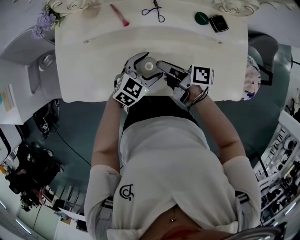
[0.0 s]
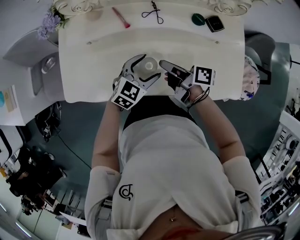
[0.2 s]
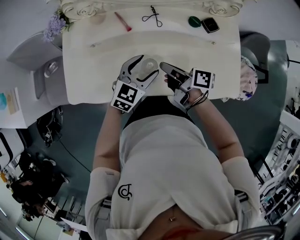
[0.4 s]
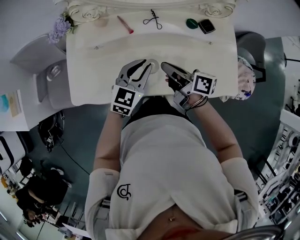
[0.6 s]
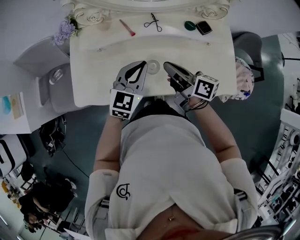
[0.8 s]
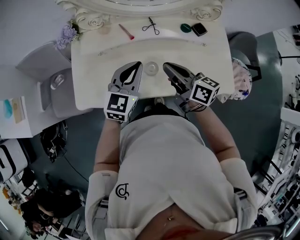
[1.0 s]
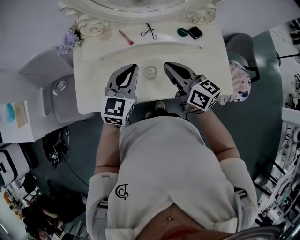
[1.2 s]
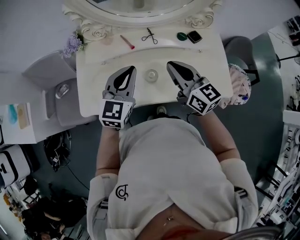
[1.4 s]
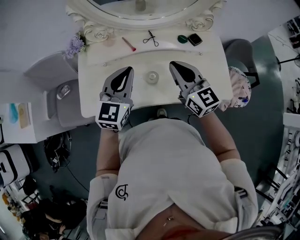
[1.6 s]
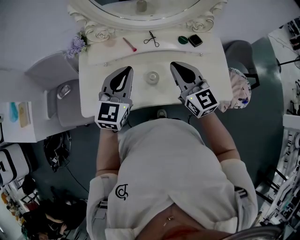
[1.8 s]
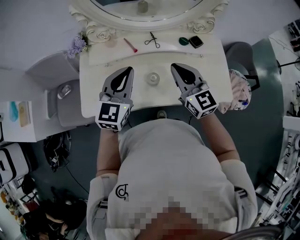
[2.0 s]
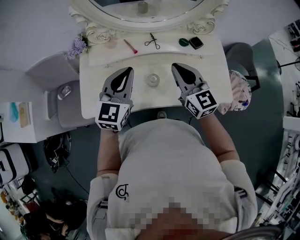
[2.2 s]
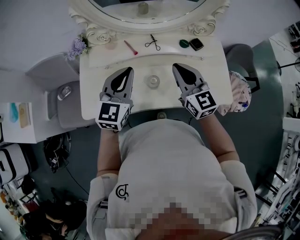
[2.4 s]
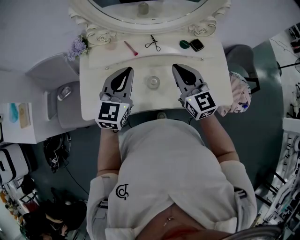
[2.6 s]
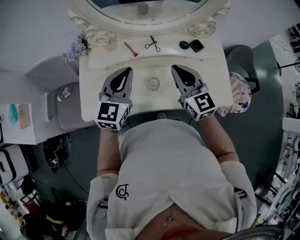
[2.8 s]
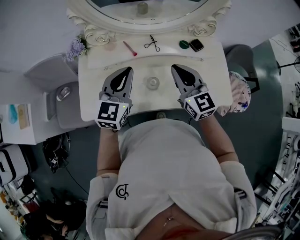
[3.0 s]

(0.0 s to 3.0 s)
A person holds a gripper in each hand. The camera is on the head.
0.0 s - 1.6 s: The left gripper travels upward and to the left by about 30 cm, changes its angle by about 30 degrees, and closes. The right gripper shifts approximately 25 cm upward, and twists about 70 degrees counterclockwise, seen from behind.
1.6 s - 3.0 s: The grippers stay close to where they were, moving slightly.

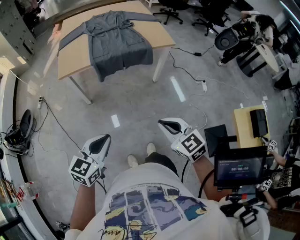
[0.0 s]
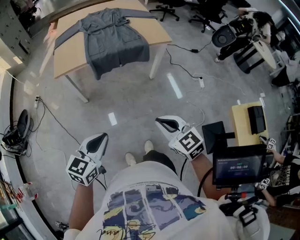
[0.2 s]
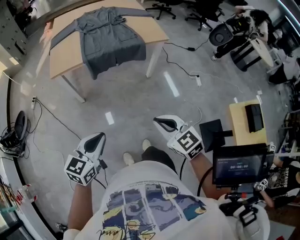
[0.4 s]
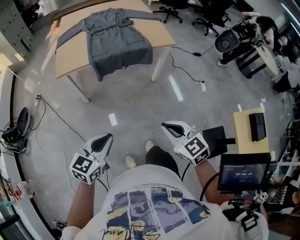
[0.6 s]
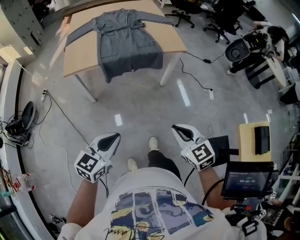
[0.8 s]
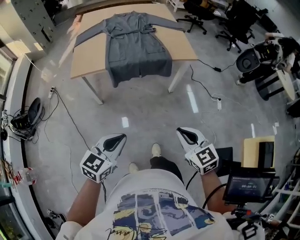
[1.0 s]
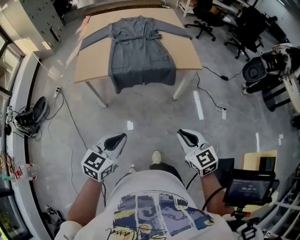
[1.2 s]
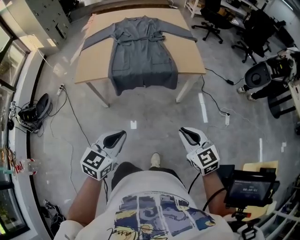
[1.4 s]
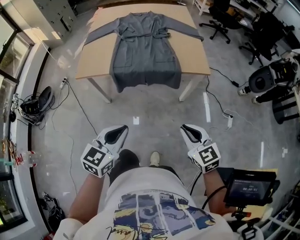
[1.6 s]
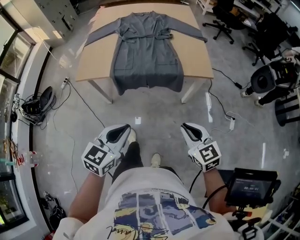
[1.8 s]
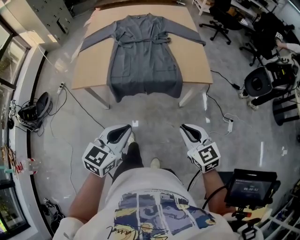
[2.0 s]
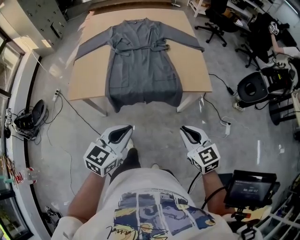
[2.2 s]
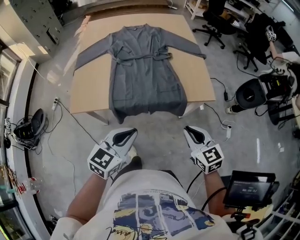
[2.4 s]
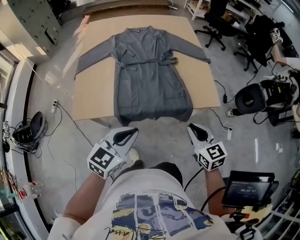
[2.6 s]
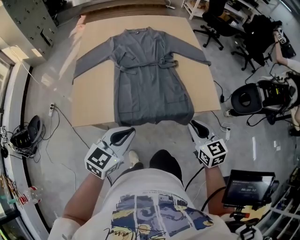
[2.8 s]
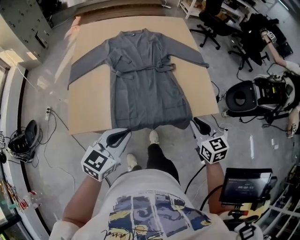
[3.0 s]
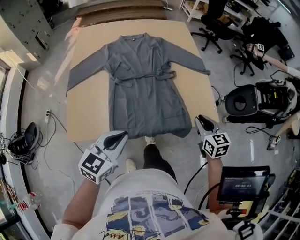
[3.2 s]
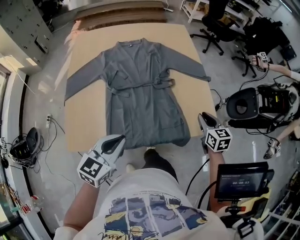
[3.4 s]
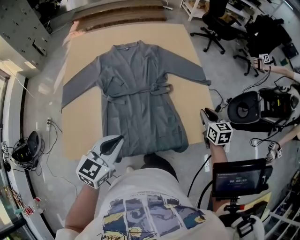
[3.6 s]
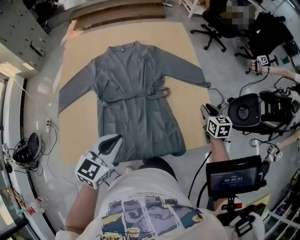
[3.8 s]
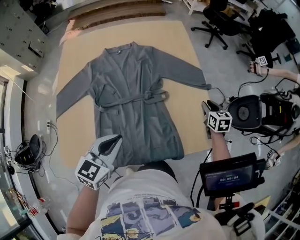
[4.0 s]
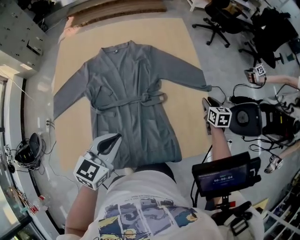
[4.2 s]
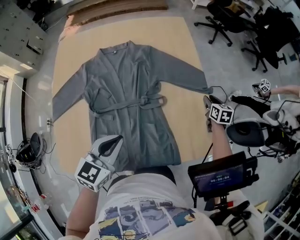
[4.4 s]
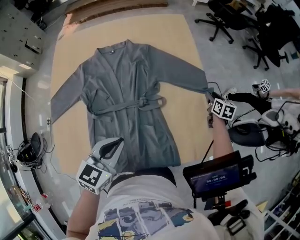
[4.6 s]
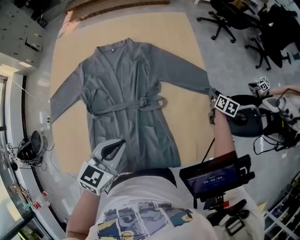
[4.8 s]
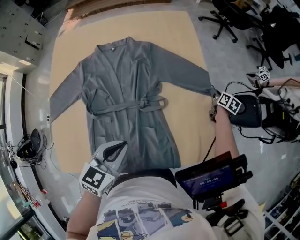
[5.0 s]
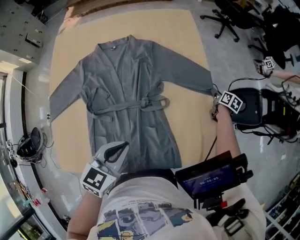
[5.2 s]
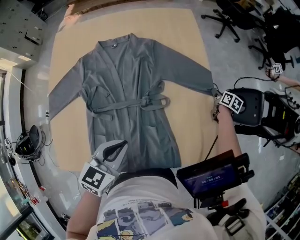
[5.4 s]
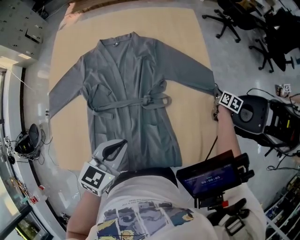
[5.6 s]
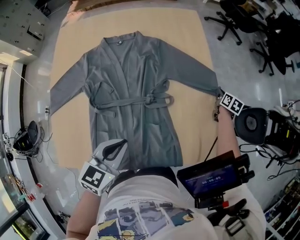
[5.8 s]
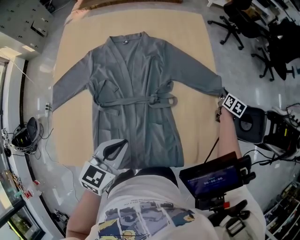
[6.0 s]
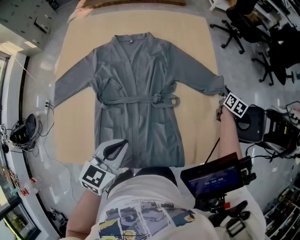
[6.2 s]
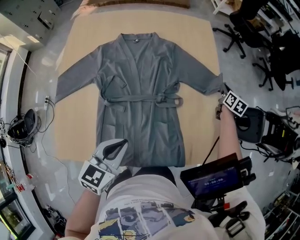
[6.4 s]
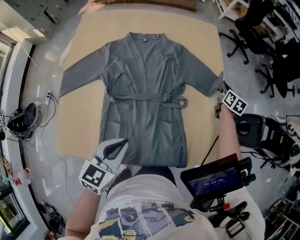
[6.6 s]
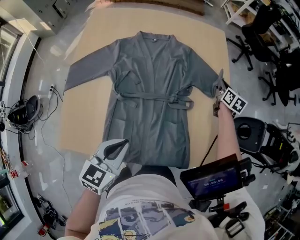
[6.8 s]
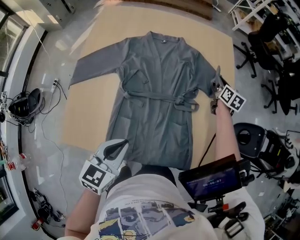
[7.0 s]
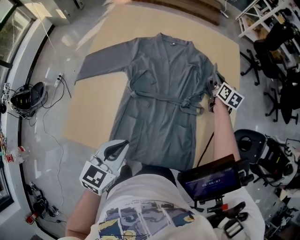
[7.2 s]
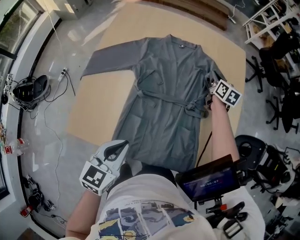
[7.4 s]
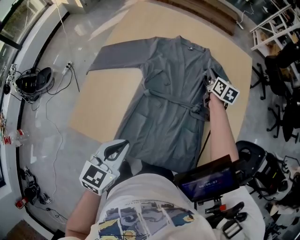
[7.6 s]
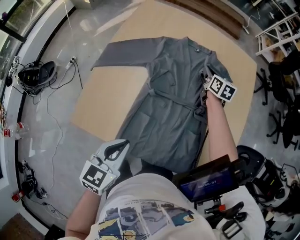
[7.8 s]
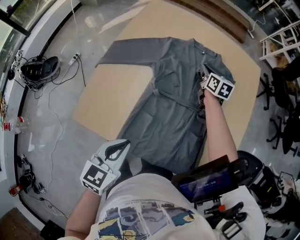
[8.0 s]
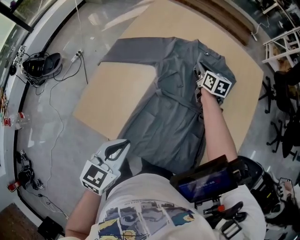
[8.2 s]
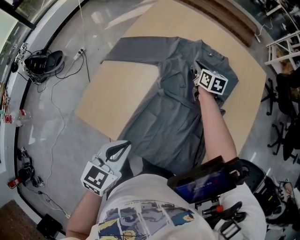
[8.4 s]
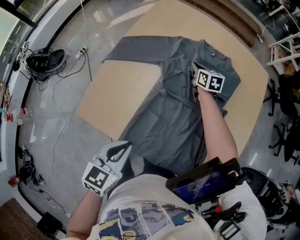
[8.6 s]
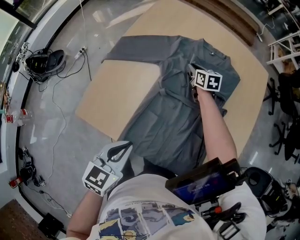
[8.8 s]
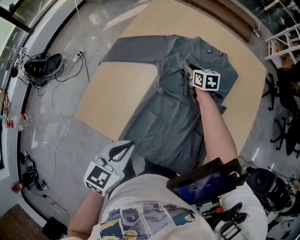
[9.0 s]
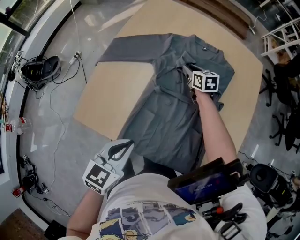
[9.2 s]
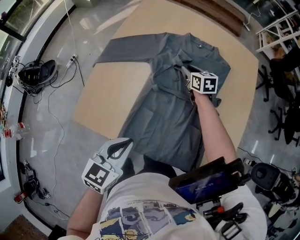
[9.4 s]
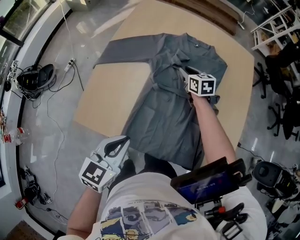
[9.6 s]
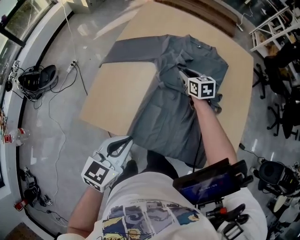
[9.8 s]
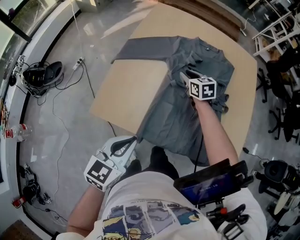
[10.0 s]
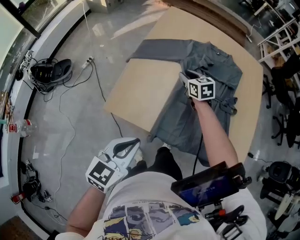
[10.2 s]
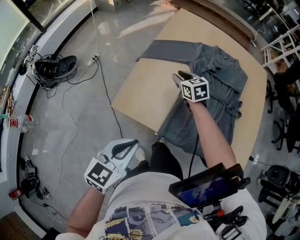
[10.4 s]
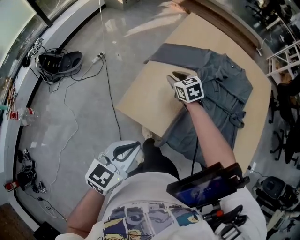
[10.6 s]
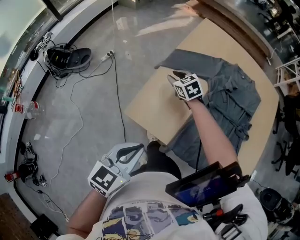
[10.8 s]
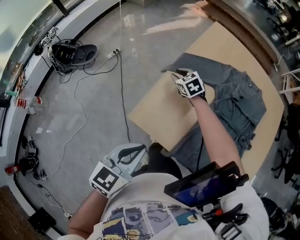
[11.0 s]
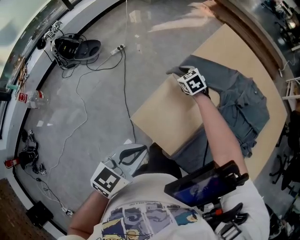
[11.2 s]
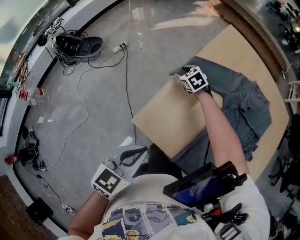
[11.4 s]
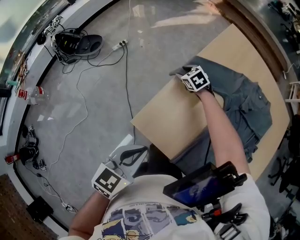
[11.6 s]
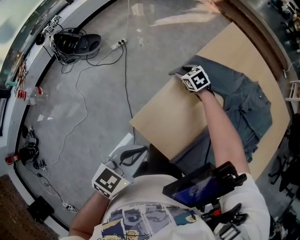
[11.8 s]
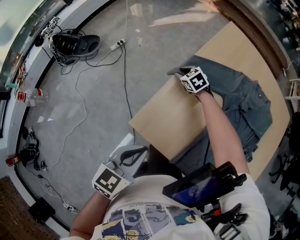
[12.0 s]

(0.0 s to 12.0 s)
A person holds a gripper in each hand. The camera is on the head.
0.0 s - 1.6 s: The grippers both shift forward and to the right by about 25 cm.
1.6 s - 3.0 s: Both grippers travel together forward, approximately 30 cm. The right gripper swivels roughly 20 degrees.
3.0 s - 4.4 s: The right gripper goes about 40 cm forward, and rotates approximately 30 degrees. The left gripper is displaced forward by some 25 cm.
4.4 s - 6.0 s: The right gripper travels forward by about 10 cm, and closes its fingers.
6.0 s - 7.6 s: The left gripper ends up roughly 15 cm from where it was, and changes its angle by roughly 20 degrees; the right gripper changes place by some 40 cm, and changes its angle by some 40 degrees.
7.6 s - 9.0 s: The right gripper shifts roughly 20 cm to the left, and rotates about 30 degrees.
9.0 s - 10.4 s: The two grippers go some 25 cm to the left and backward.
10.4 s - 12.0 s: The left gripper moves forward, some 10 cm. Meanwhile the right gripper travels forward, to the left and downward by about 25 cm, and rotates roughly 30 degrees.

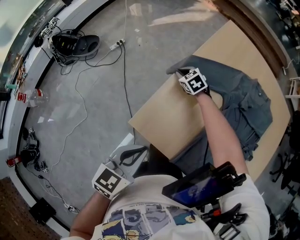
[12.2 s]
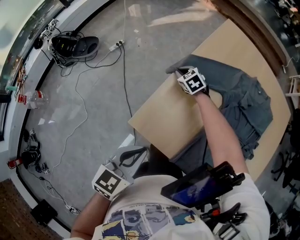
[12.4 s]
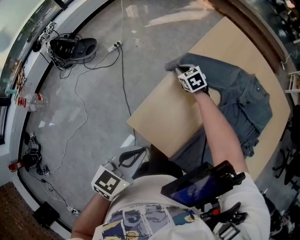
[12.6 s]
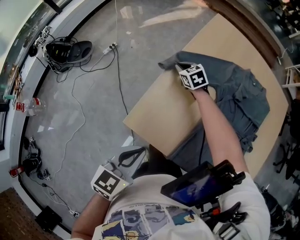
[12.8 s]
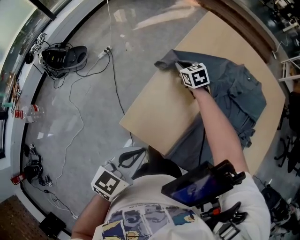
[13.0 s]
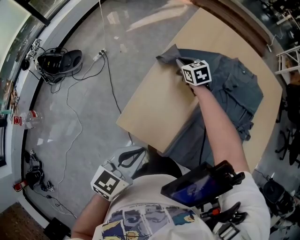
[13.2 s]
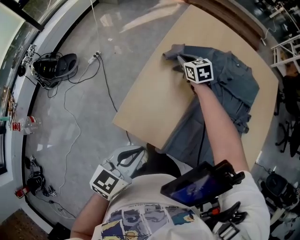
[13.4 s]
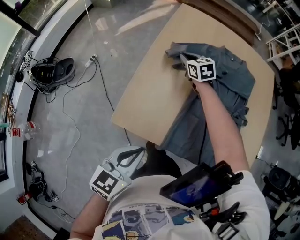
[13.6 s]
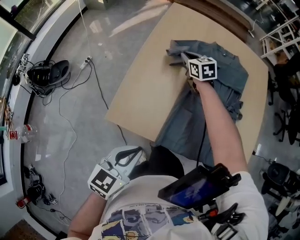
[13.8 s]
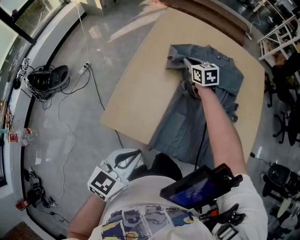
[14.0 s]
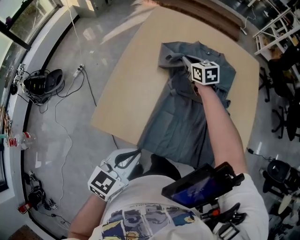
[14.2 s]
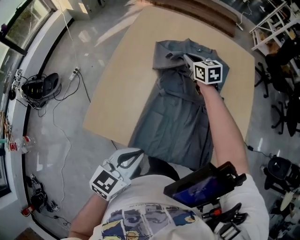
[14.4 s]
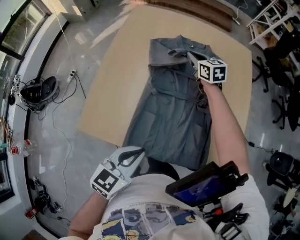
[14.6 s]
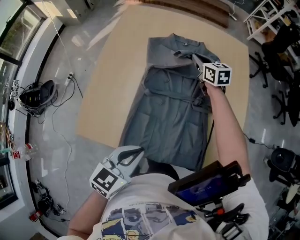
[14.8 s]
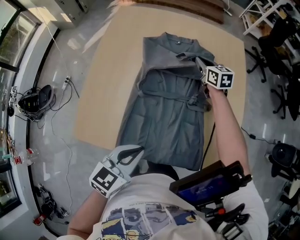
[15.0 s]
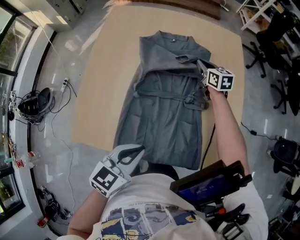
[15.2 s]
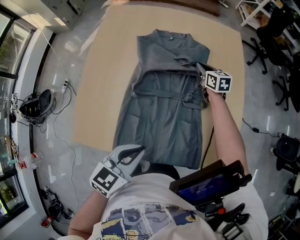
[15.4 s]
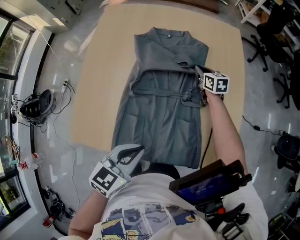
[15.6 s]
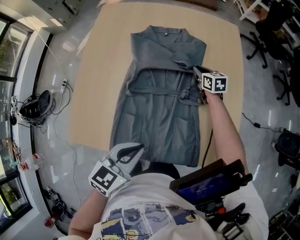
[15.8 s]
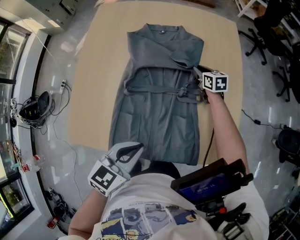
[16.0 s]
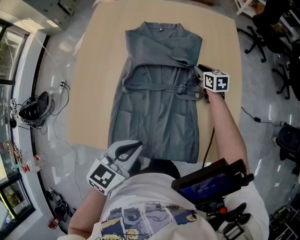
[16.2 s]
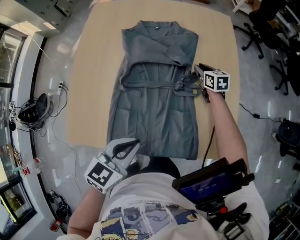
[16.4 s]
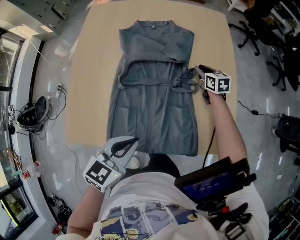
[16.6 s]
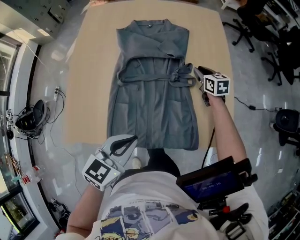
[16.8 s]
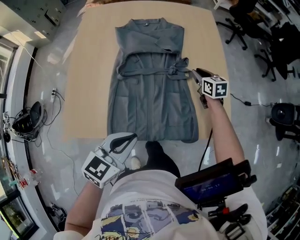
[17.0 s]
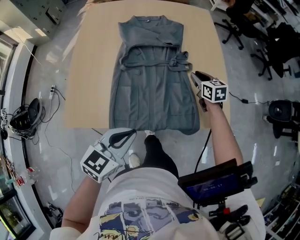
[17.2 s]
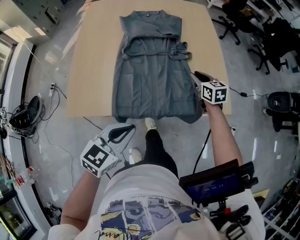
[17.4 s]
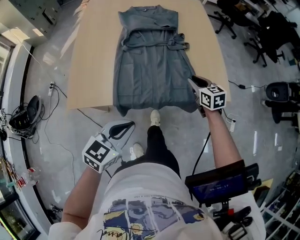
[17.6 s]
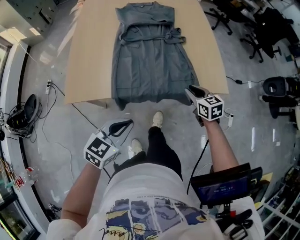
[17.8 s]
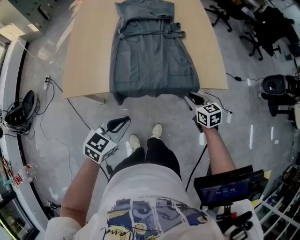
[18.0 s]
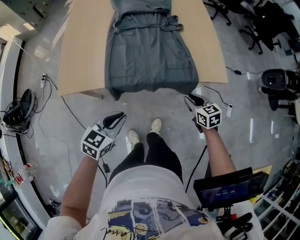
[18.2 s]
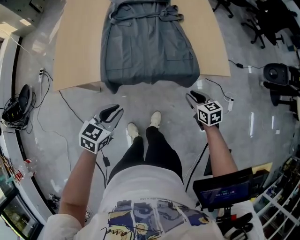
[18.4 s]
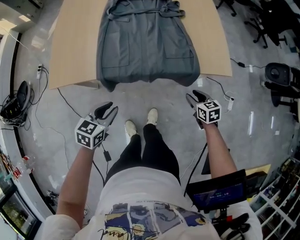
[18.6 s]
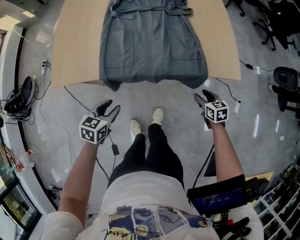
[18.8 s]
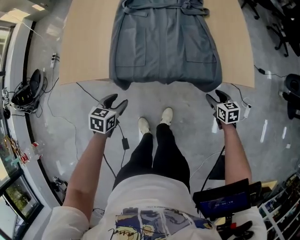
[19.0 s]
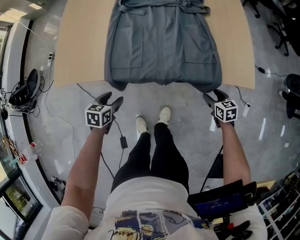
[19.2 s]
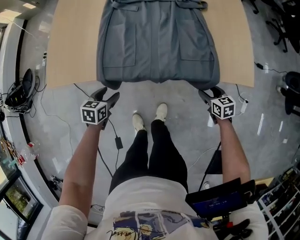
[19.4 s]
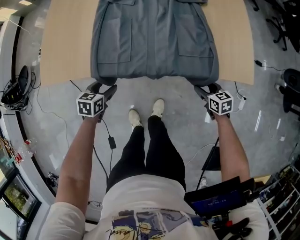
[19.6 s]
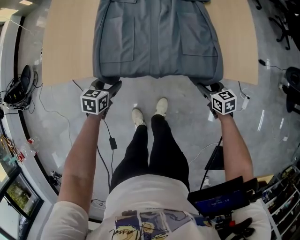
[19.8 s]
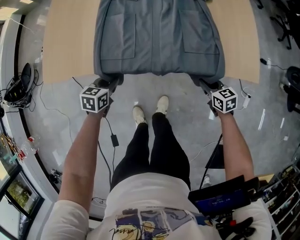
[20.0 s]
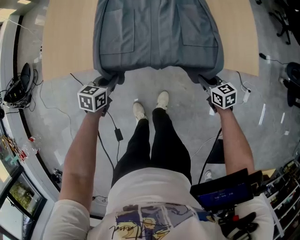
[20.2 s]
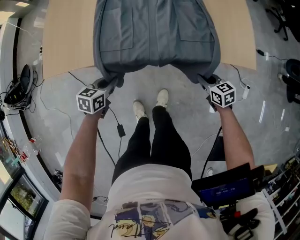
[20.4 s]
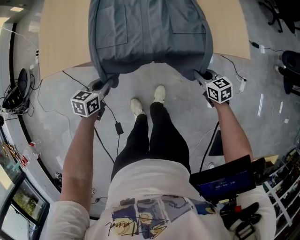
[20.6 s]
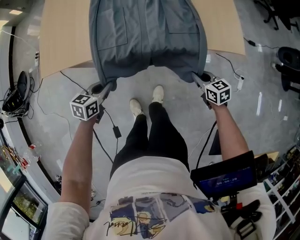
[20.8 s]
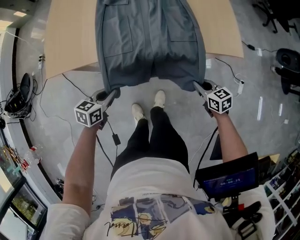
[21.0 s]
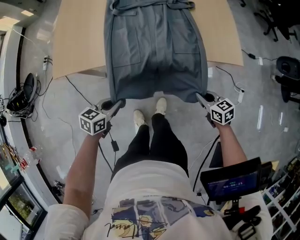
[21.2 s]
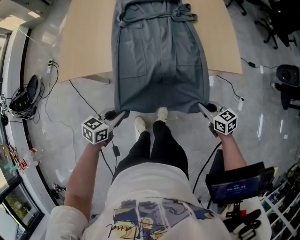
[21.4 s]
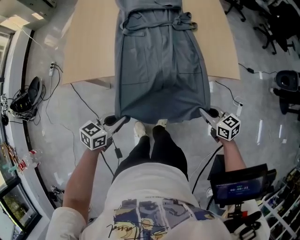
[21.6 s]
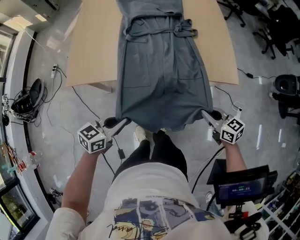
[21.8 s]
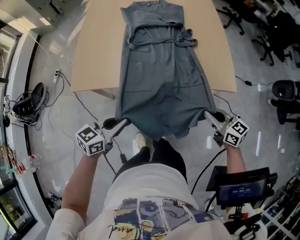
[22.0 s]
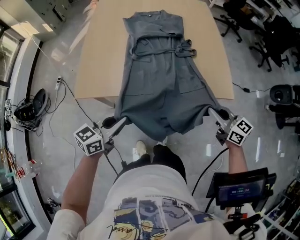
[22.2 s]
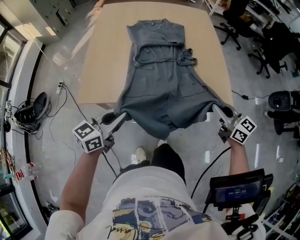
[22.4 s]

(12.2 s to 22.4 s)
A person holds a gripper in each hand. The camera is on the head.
12.2 s - 13.6 s: The left gripper is displaced to the right by some 5 cm. Meanwhile the right gripper shifts roughly 20 cm to the right and upward, and rotates approximately 40 degrees.
13.6 s - 15.2 s: The left gripper heads to the right, covering approximately 25 cm. Meanwhile the right gripper is displaced to the right by about 40 cm, and changes its angle by roughly 20 degrees.
15.2 s - 16.6 s: The right gripper heads to the right, backward and downward, covering roughly 15 cm.
16.6 s - 18.0 s: The right gripper heads backward, covering roughly 50 cm. Meanwhile the left gripper heads backward, covering roughly 25 cm.
18.0 s - 19.4 s: The left gripper moves downward, approximately 25 cm, changes its angle by roughly 30 degrees, and opens. The right gripper moves downward and to the right, approximately 20 cm, and opens up.
19.4 s - 21.0 s: The right gripper goes roughly 10 cm backward and upward, and closes up. Meanwhile the left gripper shifts about 10 cm upward and backward, and closes.
21.0 s - 22.4 s: The two grippers go some 25 cm upward. The right gripper turns by approximately 30 degrees. The left gripper turns by approximately 30 degrees.
